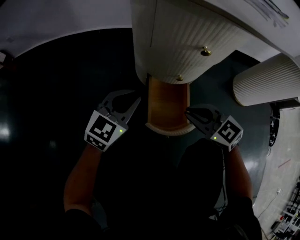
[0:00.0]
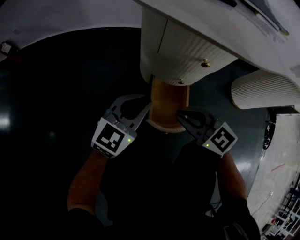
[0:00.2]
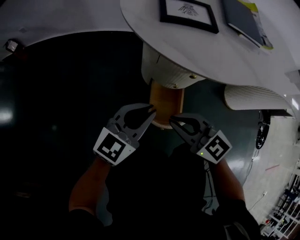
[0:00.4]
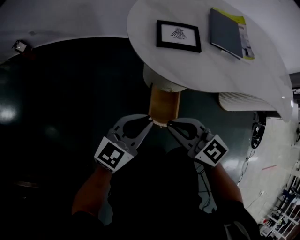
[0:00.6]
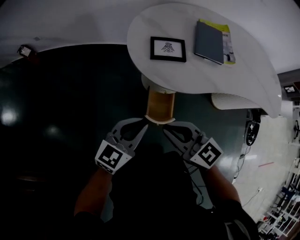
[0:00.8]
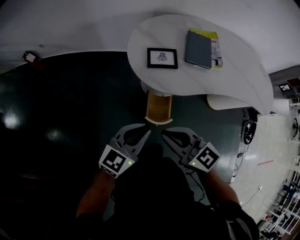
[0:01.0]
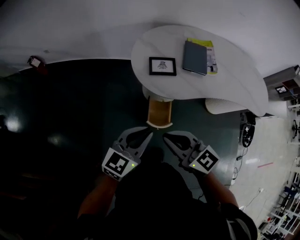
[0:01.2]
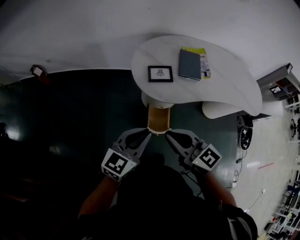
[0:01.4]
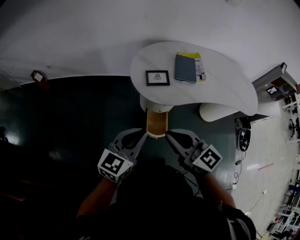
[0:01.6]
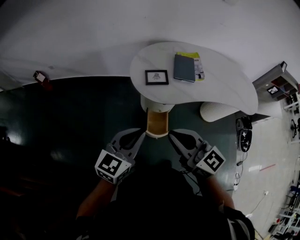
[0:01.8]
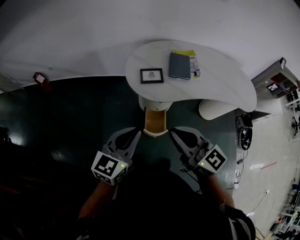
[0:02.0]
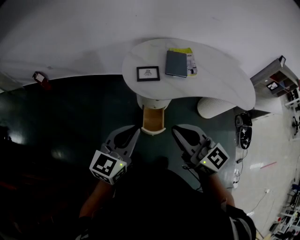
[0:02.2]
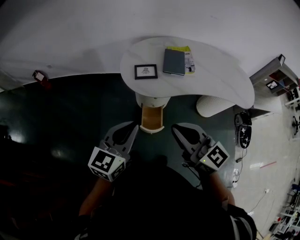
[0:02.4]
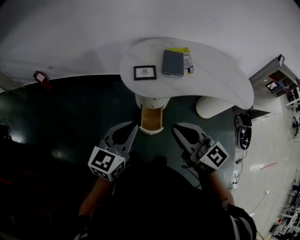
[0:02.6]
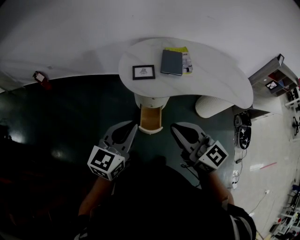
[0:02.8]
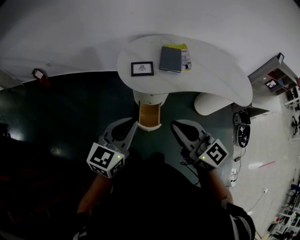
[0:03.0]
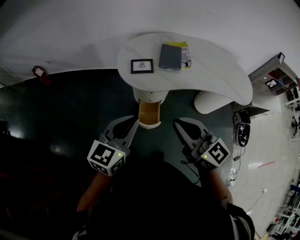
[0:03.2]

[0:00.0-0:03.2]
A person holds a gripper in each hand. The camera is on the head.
0:00.0 to 0:01.6: The grippers both shift upward by approximately 70 cm. The right gripper changes its angle by roughly 30 degrees.
0:01.6 to 0:03.2: Both grippers move to the right and backward, roughly 15 cm.

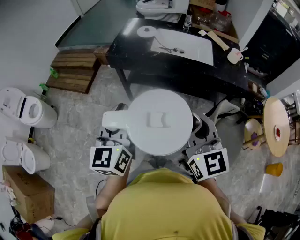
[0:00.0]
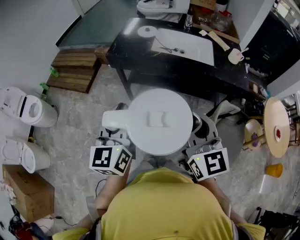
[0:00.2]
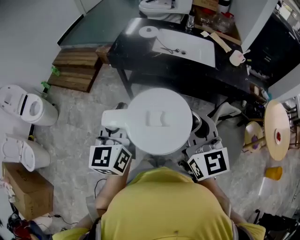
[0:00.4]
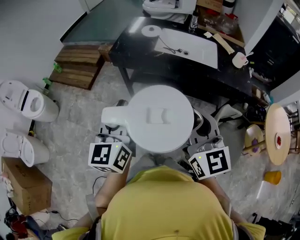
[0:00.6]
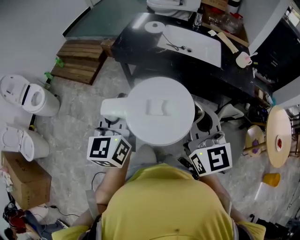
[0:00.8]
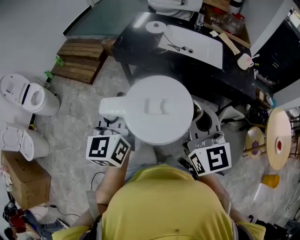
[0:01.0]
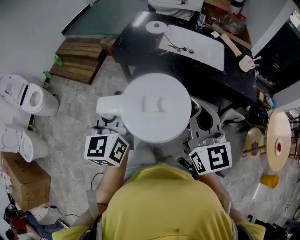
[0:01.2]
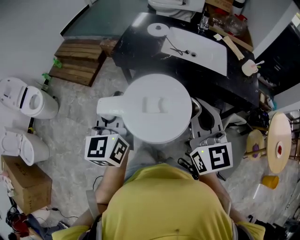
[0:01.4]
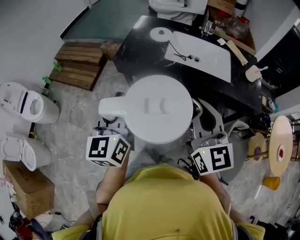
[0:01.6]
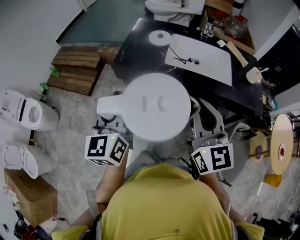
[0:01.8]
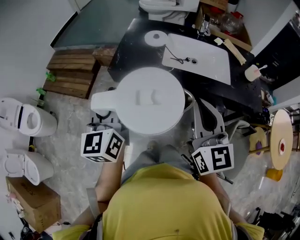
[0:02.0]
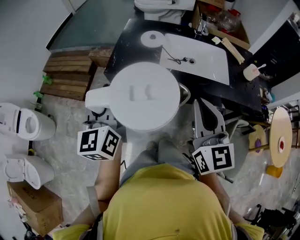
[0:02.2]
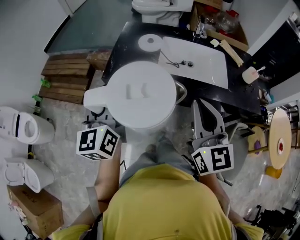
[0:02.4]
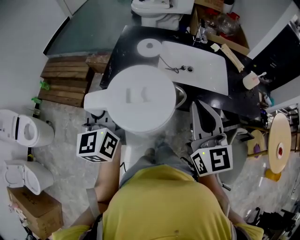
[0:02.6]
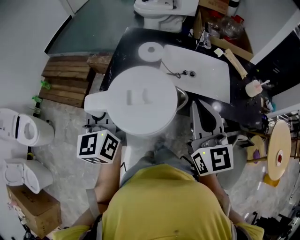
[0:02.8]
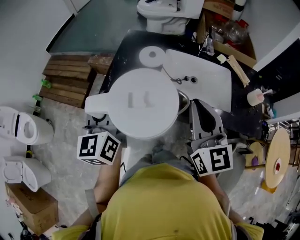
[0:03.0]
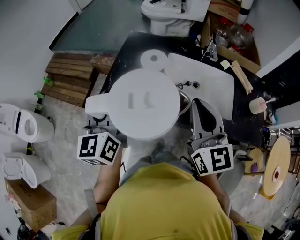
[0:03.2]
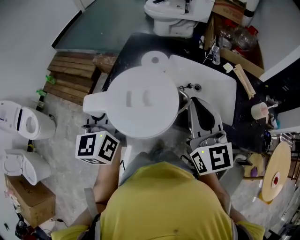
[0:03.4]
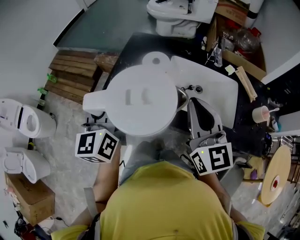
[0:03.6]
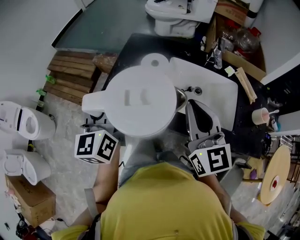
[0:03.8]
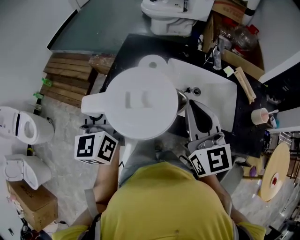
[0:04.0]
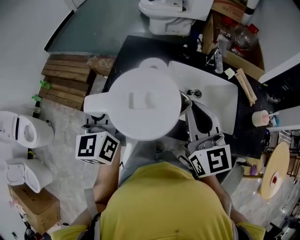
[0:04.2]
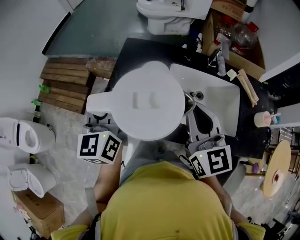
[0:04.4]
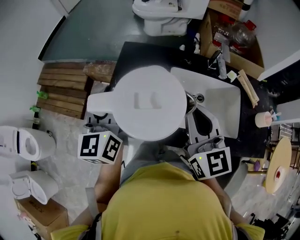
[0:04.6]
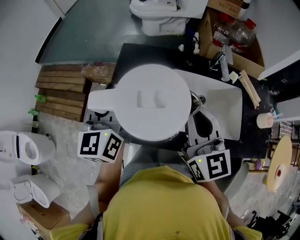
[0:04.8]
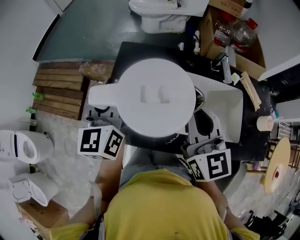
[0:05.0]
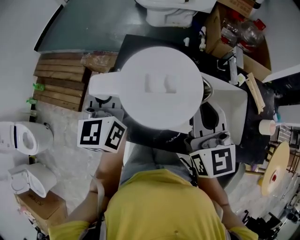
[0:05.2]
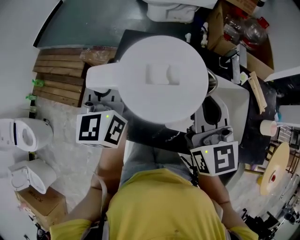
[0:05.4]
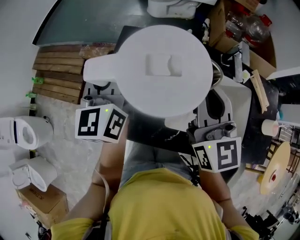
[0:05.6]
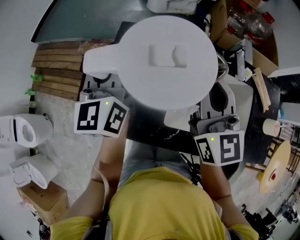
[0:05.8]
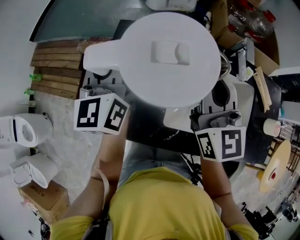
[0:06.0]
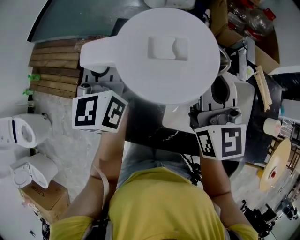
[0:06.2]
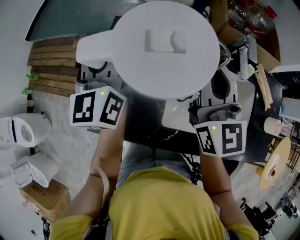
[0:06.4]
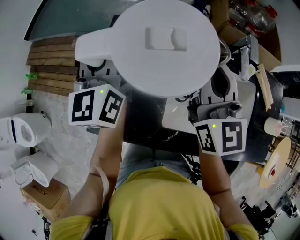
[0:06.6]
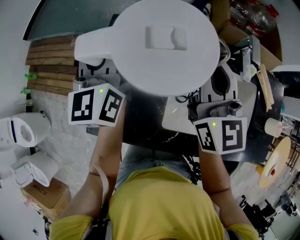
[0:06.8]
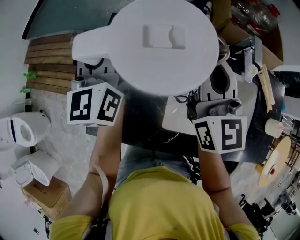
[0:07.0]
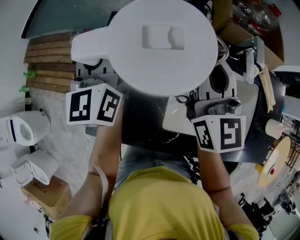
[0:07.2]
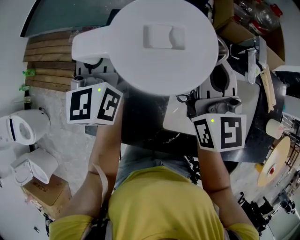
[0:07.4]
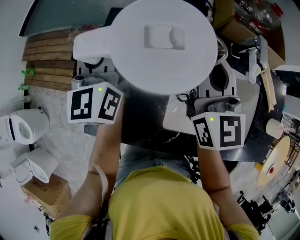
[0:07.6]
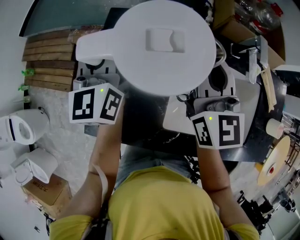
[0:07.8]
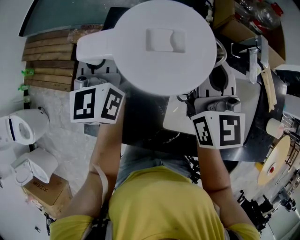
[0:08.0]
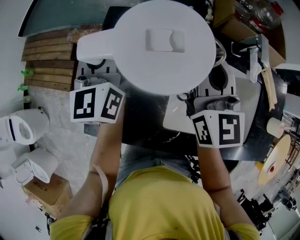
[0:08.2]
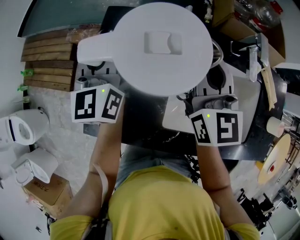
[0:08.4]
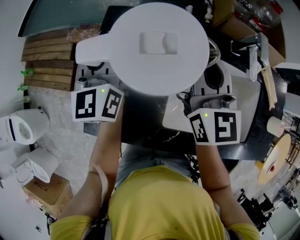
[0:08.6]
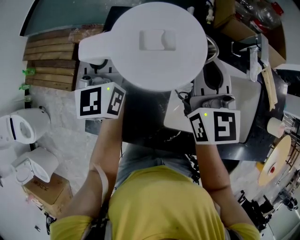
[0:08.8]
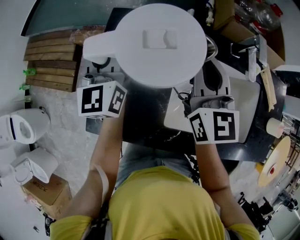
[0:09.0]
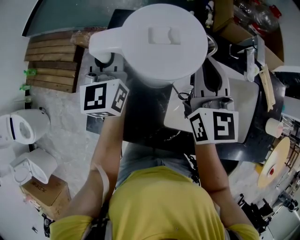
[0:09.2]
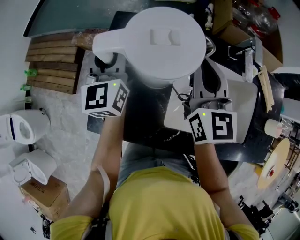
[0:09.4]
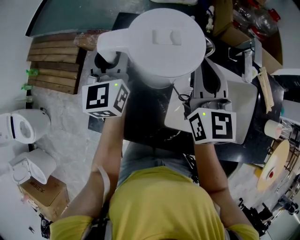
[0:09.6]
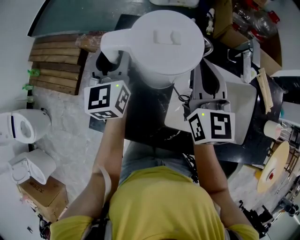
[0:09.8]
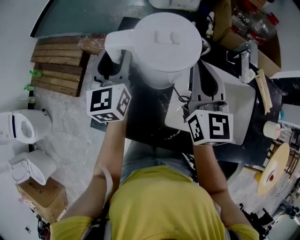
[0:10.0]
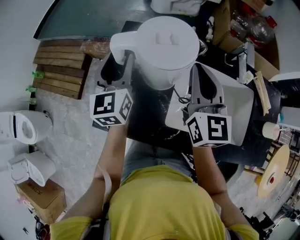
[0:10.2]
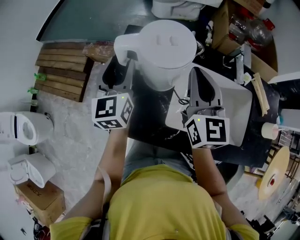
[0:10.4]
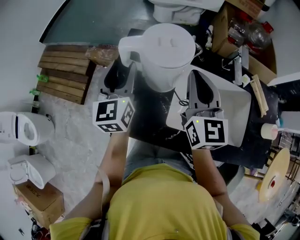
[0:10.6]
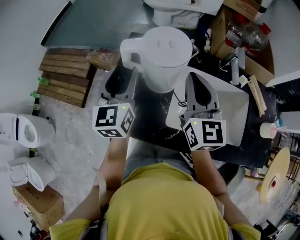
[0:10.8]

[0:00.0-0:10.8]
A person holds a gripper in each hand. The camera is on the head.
0:00.0 to 0:01.6: The two grippers go some 15 cm forward.
0:01.6 to 0:03.0: Both grippers move forward, roughly 20 cm.
0:03.0 to 0:04.6: Both grippers travel together forward, approximately 20 cm.
0:04.6 to 0:06.2: Both grippers move forward, about 15 cm.
0:06.2 to 0:07.8: The left gripper is displaced downward by approximately 5 cm, while the right gripper goes roughly 5 cm downward and forward.
0:07.8 to 0:09.2: The grippers move only a little.
0:09.2 to 0:10.8: The right gripper moves backward and upward, some 10 cm, while the left gripper heads backward, covering approximately 10 cm, and opens up.

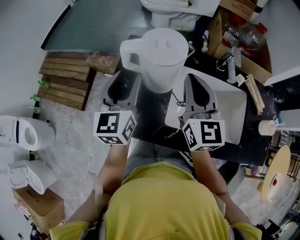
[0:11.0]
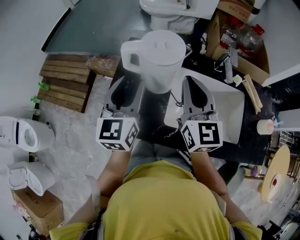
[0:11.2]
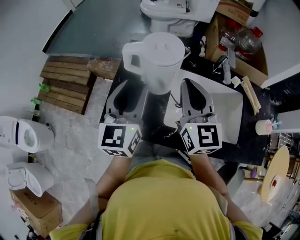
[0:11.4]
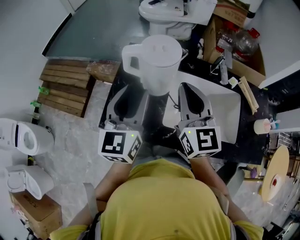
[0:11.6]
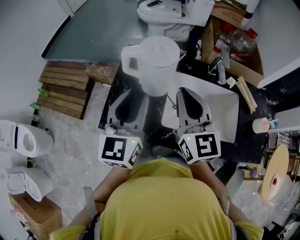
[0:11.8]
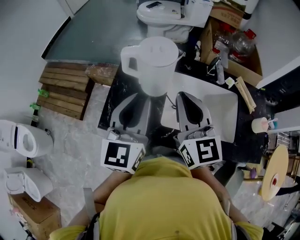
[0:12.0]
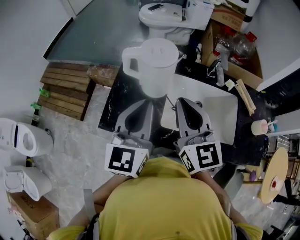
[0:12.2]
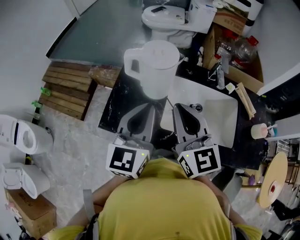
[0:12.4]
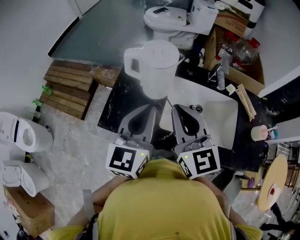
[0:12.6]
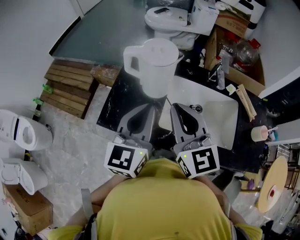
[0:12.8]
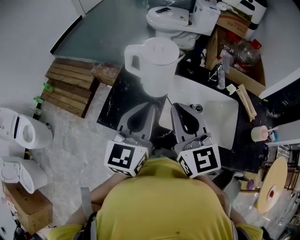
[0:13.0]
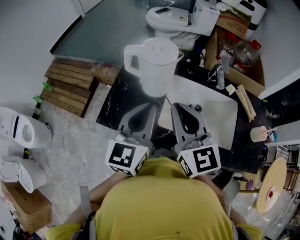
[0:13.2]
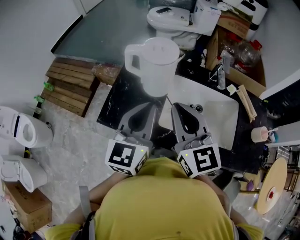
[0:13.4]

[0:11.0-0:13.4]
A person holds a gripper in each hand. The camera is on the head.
0:11.0 to 0:12.2: The left gripper is displaced backward, to the right and upward by approximately 15 cm, and closes, while the right gripper goes roughly 10 cm backward.
0:12.2 to 0:13.4: The grippers move only a little.

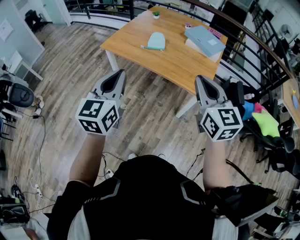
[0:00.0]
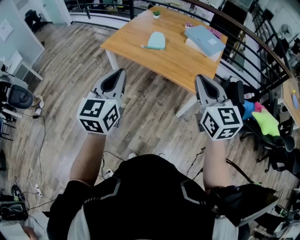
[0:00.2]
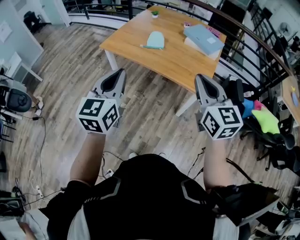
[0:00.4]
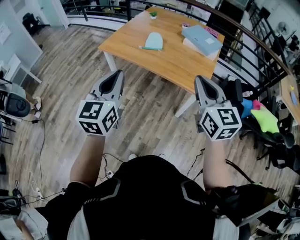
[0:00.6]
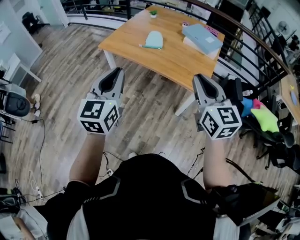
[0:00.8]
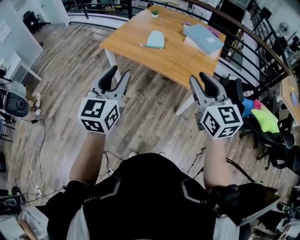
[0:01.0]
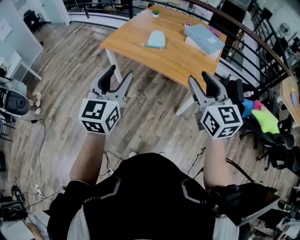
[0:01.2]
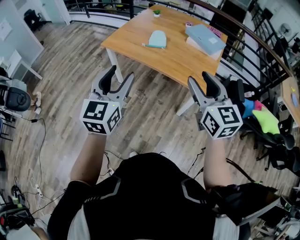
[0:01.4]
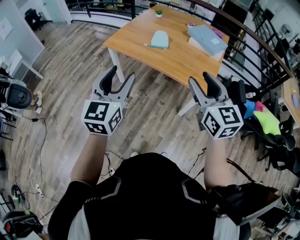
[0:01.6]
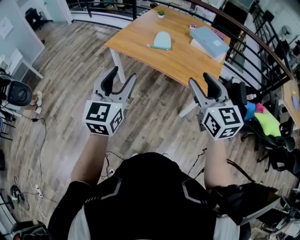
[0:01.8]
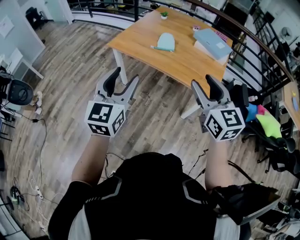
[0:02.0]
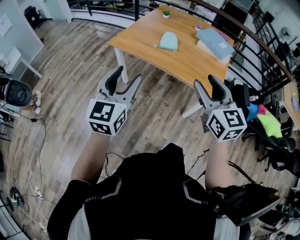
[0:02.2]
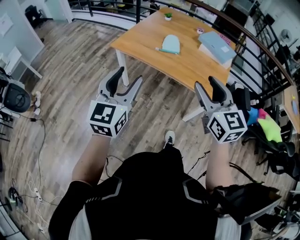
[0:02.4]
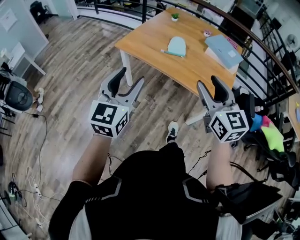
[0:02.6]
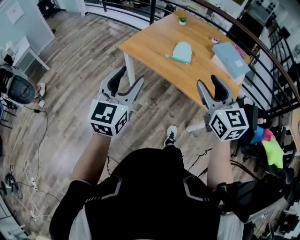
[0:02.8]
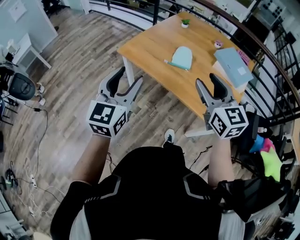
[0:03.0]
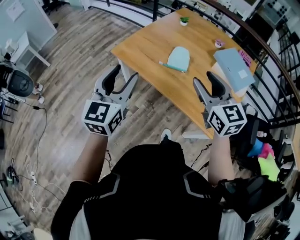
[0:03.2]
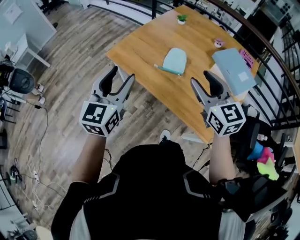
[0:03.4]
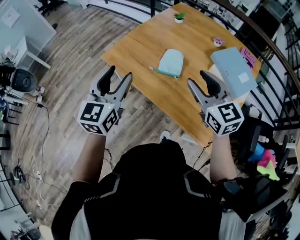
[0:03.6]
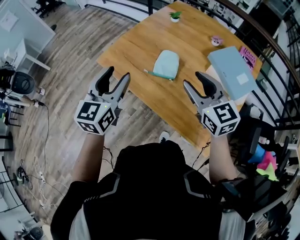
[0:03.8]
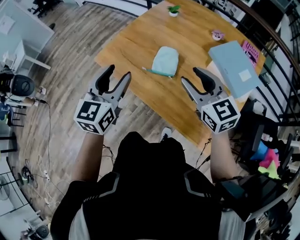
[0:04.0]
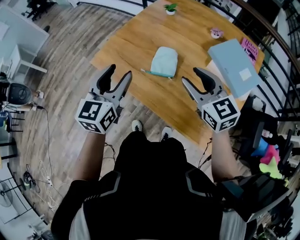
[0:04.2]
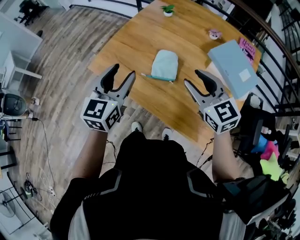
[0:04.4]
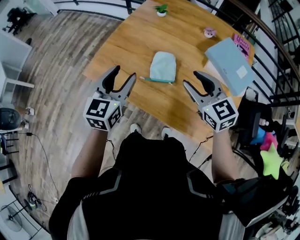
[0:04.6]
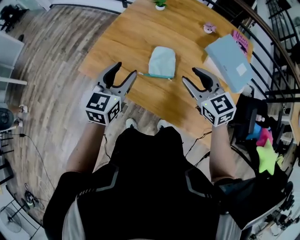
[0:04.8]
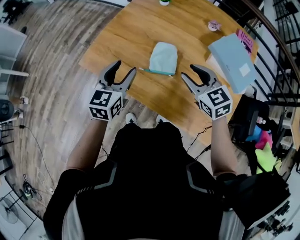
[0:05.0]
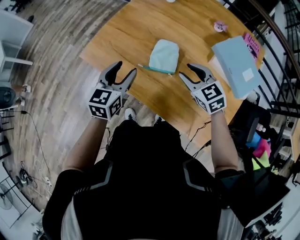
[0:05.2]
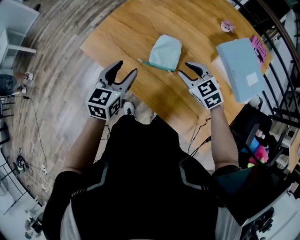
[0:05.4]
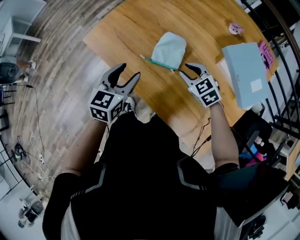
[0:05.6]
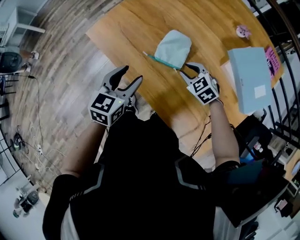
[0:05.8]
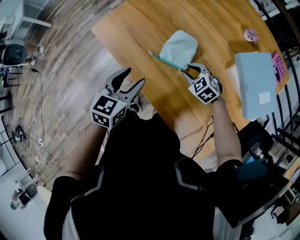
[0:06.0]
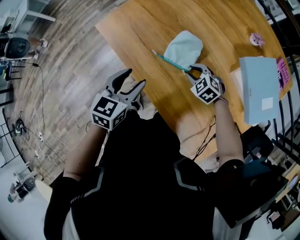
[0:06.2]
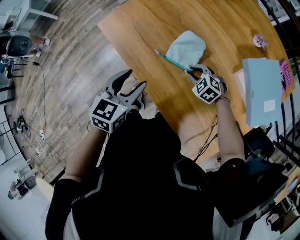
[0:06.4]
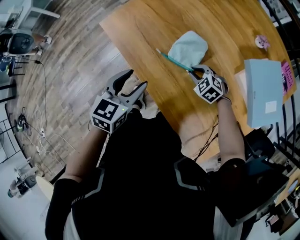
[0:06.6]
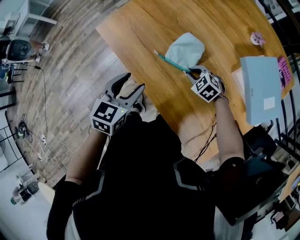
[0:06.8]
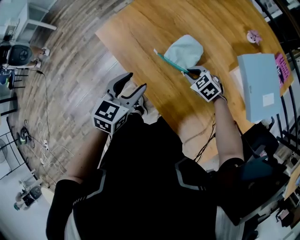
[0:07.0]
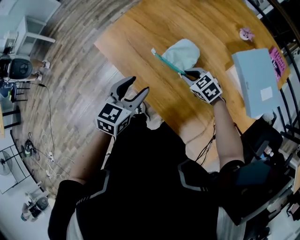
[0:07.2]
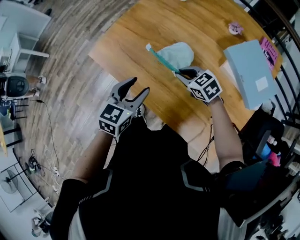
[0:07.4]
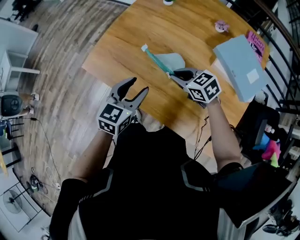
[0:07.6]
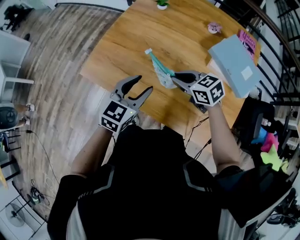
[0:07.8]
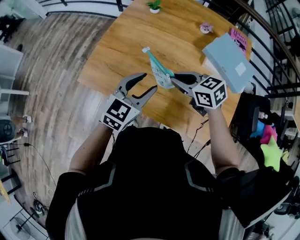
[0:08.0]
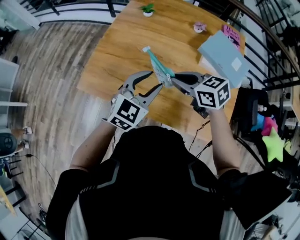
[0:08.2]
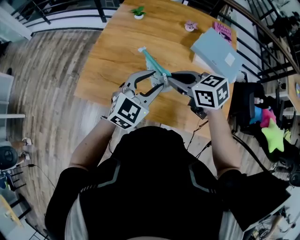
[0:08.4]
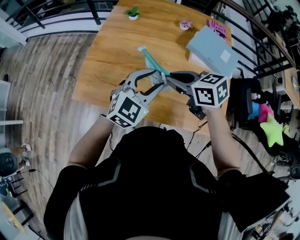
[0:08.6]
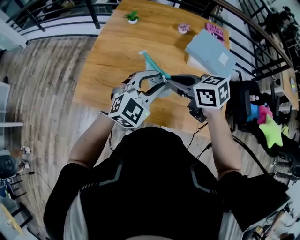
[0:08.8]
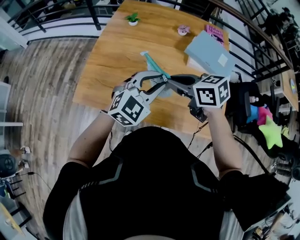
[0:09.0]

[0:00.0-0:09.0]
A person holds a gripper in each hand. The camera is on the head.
0:00.0 to 0:01.6: The left gripper opens up. Meanwhile the right gripper opens.
0:01.6 to 0:03.0: Both grippers move forward, approximately 20 cm.
0:03.0 to 0:04.4: Both grippers move forward and to the right, some 25 cm.
0:04.4 to 0:06.0: The left gripper moves downward, roughly 15 cm, and changes its angle by about 20 degrees, while the right gripper heads downward, covering about 30 cm, and points its fingers some 30 degrees further downward.
0:06.0 to 0:07.6: The left gripper changes place by about 5 cm. Meanwhile the right gripper travels upward by roughly 10 cm, and rotates some 30 degrees.
0:07.6 to 0:09.0: The left gripper shifts approximately 10 cm upward, rotates some 50 degrees, and closes; the right gripper moves upward, approximately 15 cm, and changes its angle by approximately 30 degrees.
